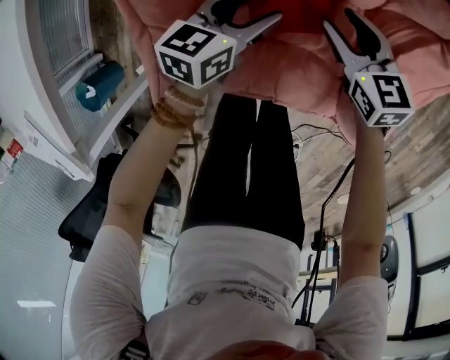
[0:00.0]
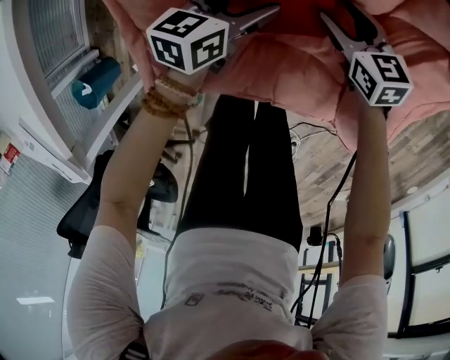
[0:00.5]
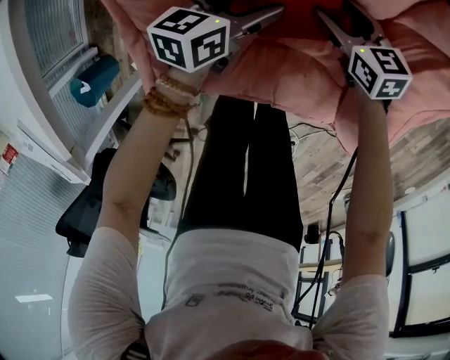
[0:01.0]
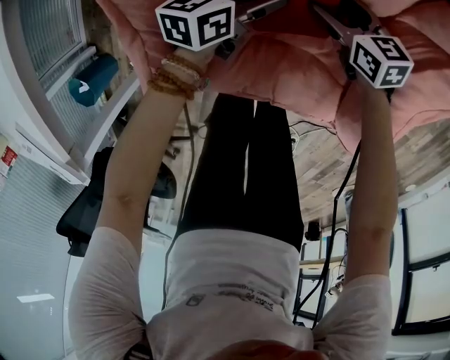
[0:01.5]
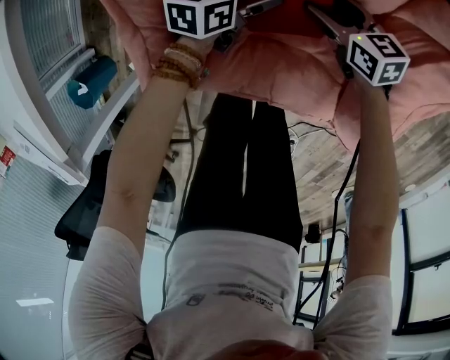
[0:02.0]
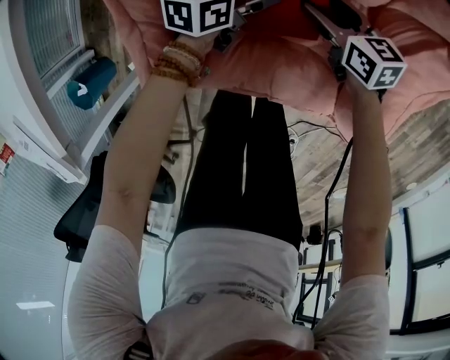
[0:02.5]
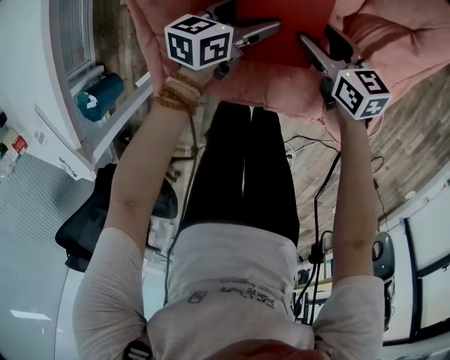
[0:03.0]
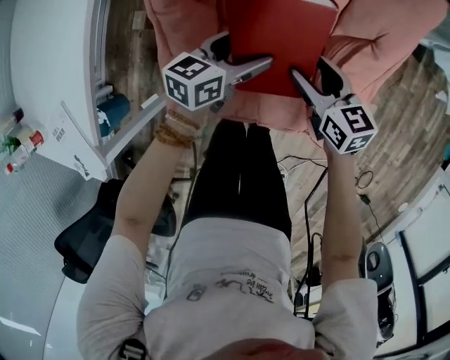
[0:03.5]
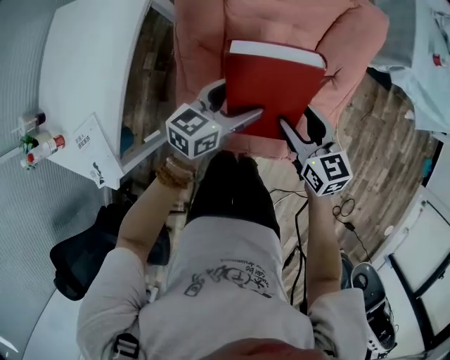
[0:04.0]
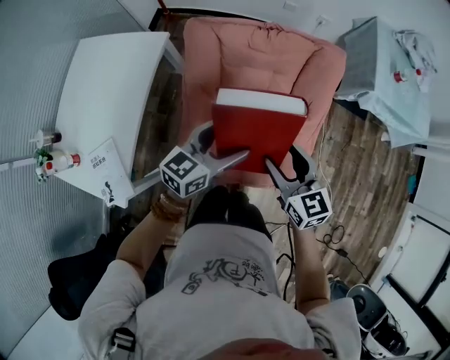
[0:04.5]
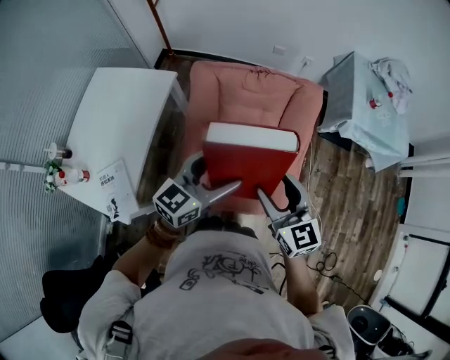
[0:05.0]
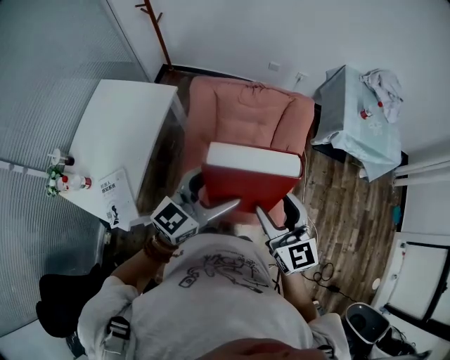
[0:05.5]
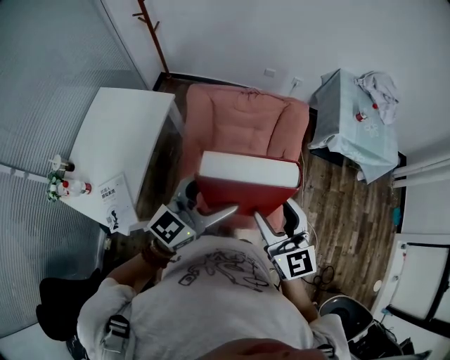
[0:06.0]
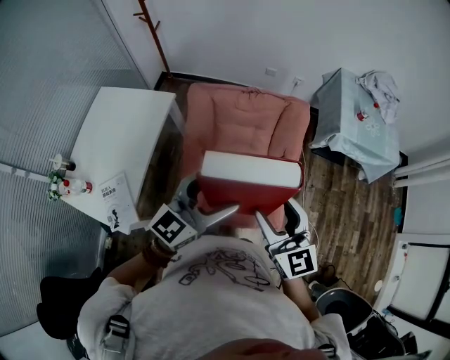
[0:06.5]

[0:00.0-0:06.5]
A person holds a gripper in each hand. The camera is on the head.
0.0 to 2.0 s: The grippers both shift downward by about 10 cm. The left gripper opens up.
2.0 to 4.5 s: The two grippers go about 60 cm upward. The left gripper rotates some 30 degrees. Meanwhile the right gripper rotates about 30 degrees.
4.5 to 6.5 s: The two grippers go about 25 cm upward and backward. The left gripper swivels some 20 degrees, while the right gripper swivels approximately 20 degrees.

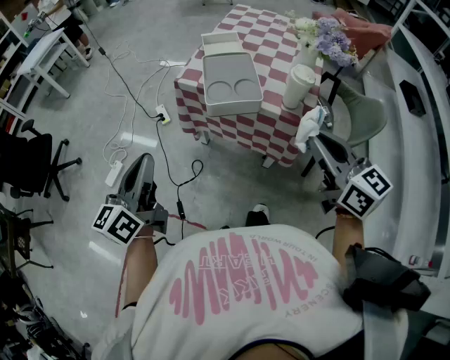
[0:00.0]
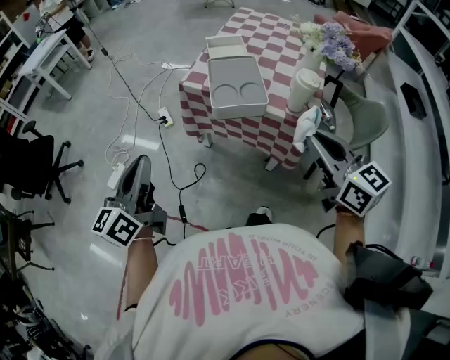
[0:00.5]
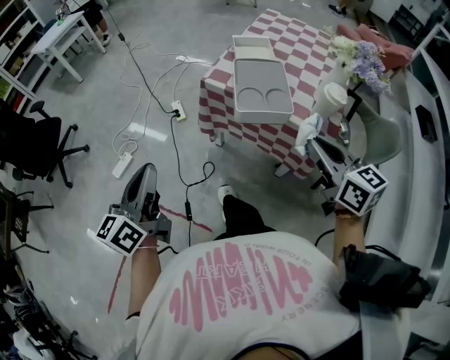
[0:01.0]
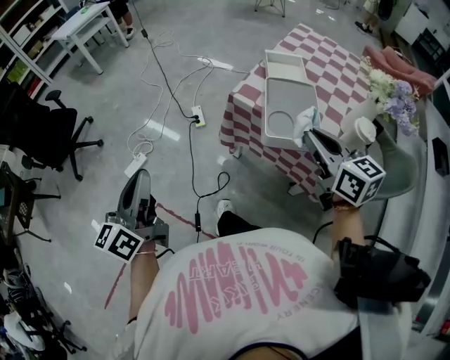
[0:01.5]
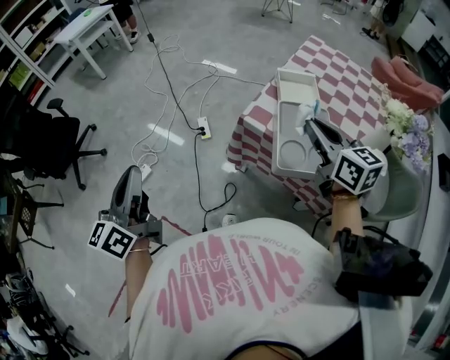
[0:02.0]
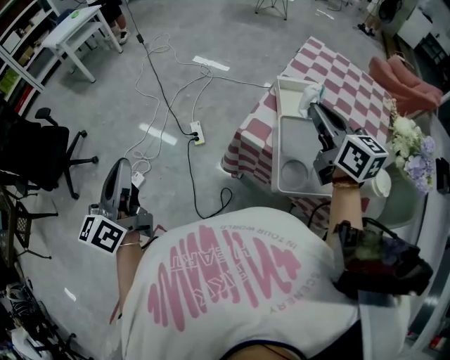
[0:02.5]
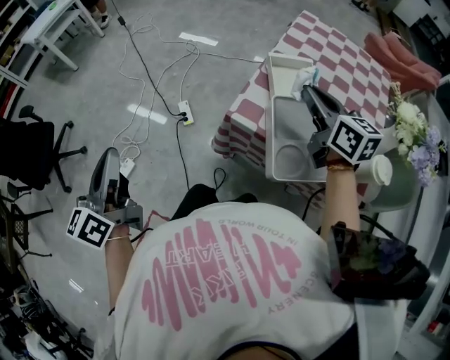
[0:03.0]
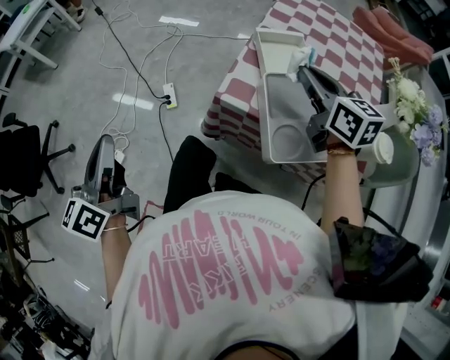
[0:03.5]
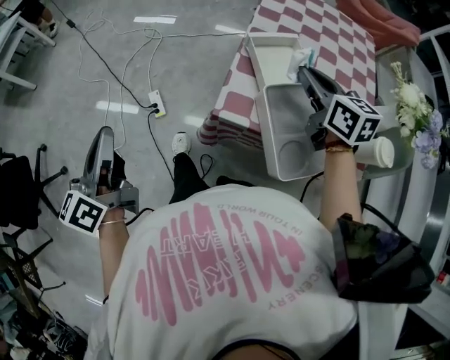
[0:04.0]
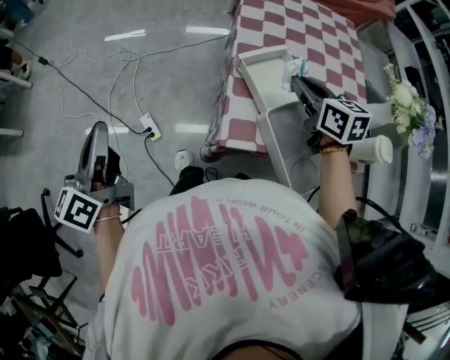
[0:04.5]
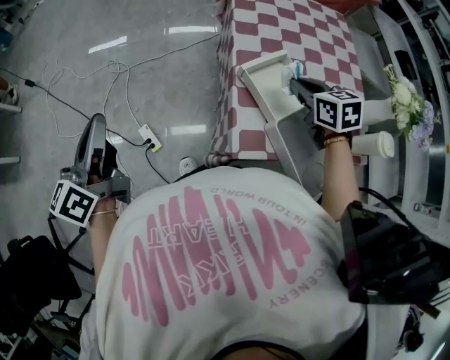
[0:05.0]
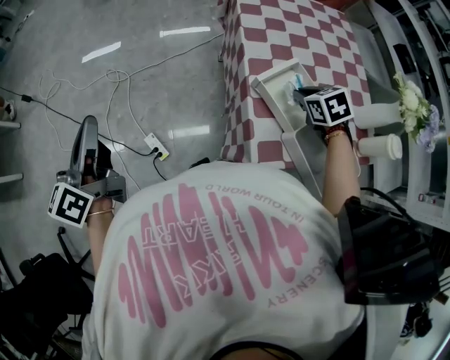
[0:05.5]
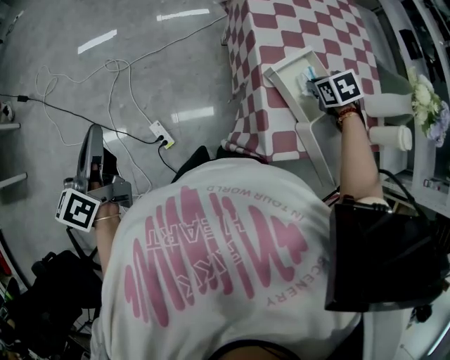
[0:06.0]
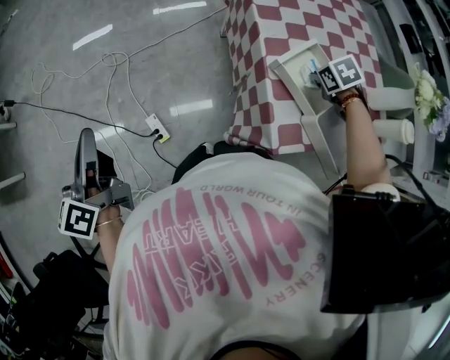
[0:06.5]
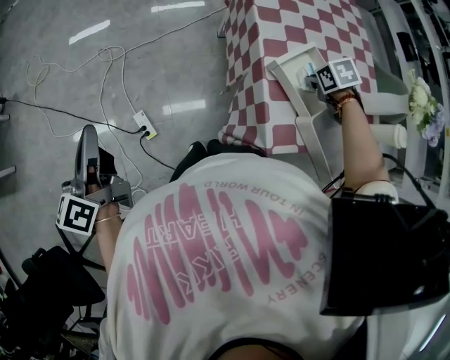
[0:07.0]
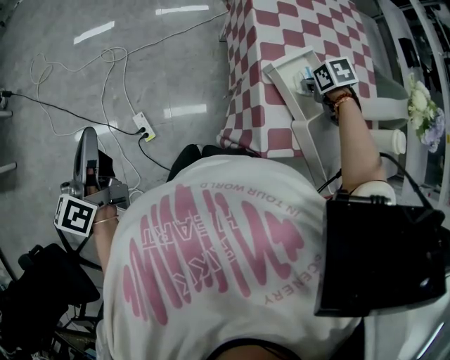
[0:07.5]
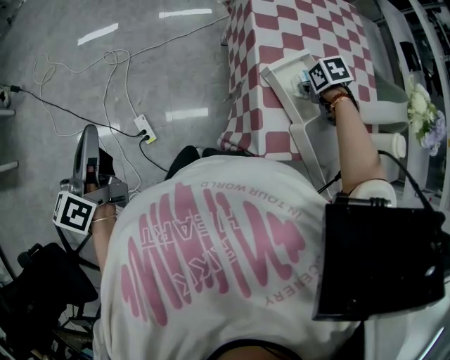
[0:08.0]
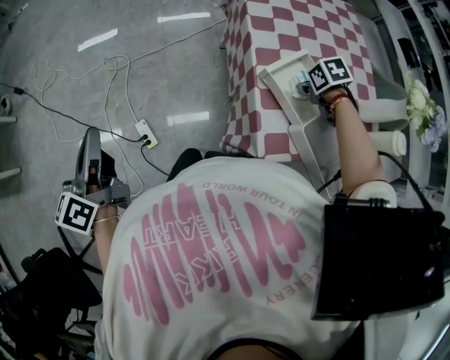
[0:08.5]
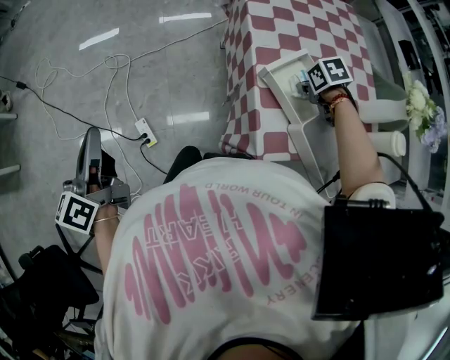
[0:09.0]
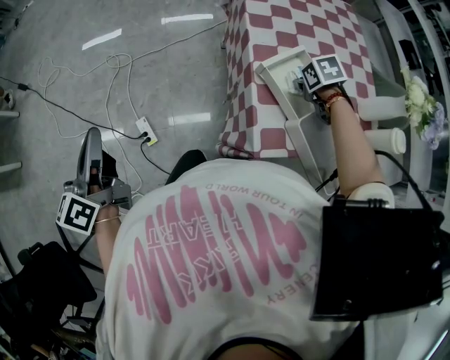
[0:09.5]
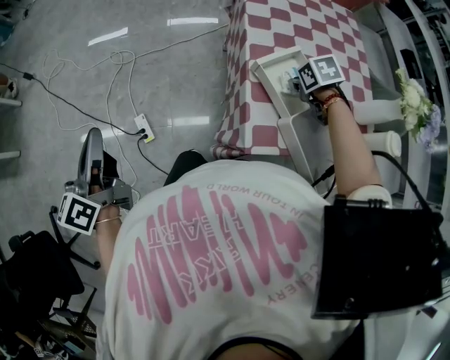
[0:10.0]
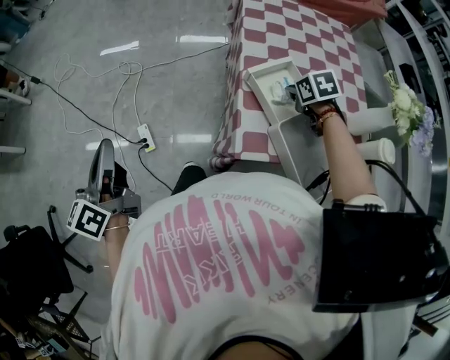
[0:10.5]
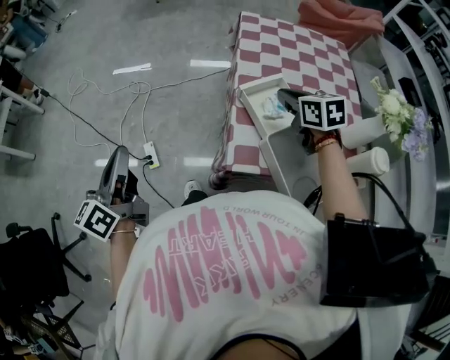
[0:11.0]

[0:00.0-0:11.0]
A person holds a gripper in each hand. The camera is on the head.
0.0 to 2.0 s: The left gripper shifts some 25 cm to the left and forward; the right gripper shifts about 35 cm forward and to the left.
2.0 to 3.5 s: The grippers both shift forward by about 15 cm.
3.5 to 5.5 s: The left gripper moves approximately 50 cm, and swivels some 30 degrees. Meanwhile the right gripper shifts by approximately 25 cm, and angles its fingers downward, by about 40 degrees.
5.5 to 7.5 s: Both grippers move downward, approximately 5 cm. The right gripper rotates approximately 20 degrees.
7.5 to 9.0 s: The grippers move only a little.
9.0 to 11.0 s: The left gripper shifts by about 20 cm. The right gripper shifts about 15 cm upward, and tips its fingers upward by roughly 40 degrees.

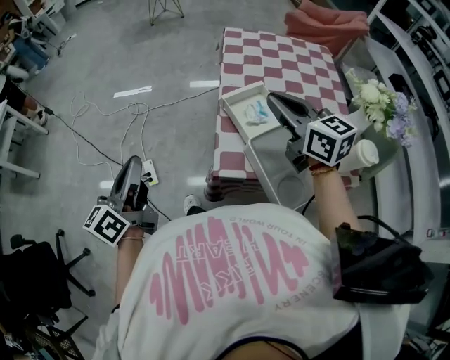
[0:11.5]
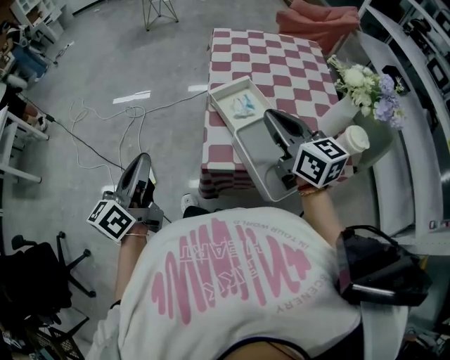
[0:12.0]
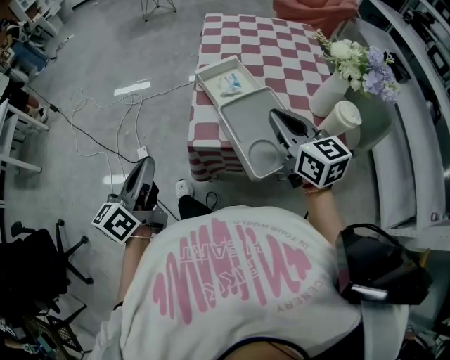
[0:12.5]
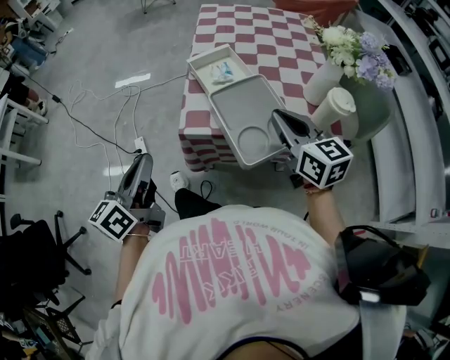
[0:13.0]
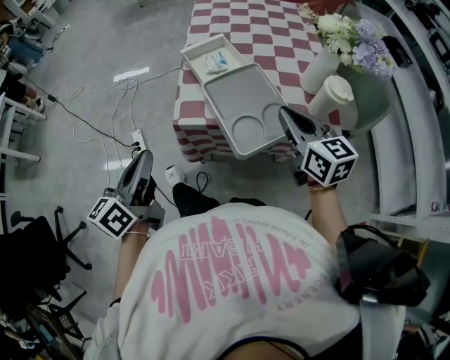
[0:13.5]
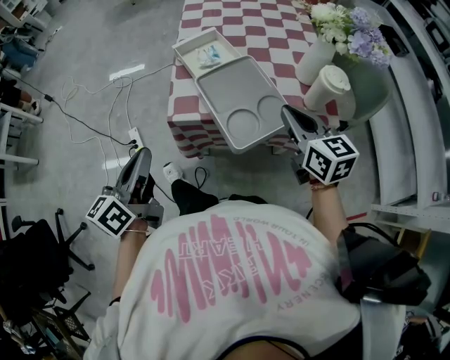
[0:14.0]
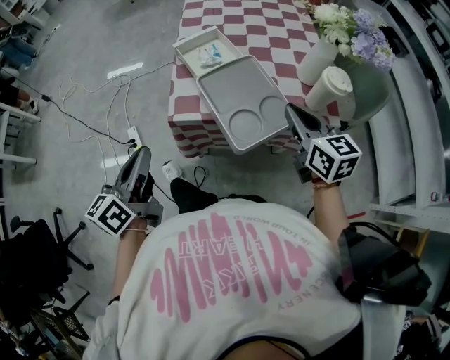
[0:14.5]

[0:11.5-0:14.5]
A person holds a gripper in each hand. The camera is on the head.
11.5 to 13.0 s: The right gripper moves backward, to the right and downward, roughly 20 cm, while the left gripper goes approximately 20 cm to the right and backward.
13.0 to 14.5 s: The right gripper shifts about 5 cm to the right.

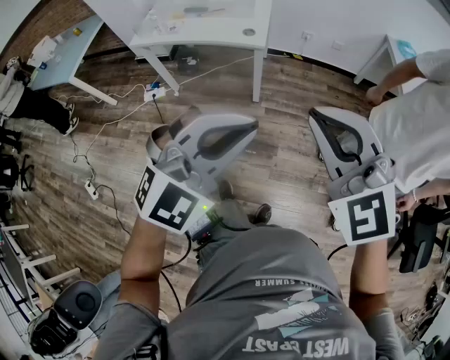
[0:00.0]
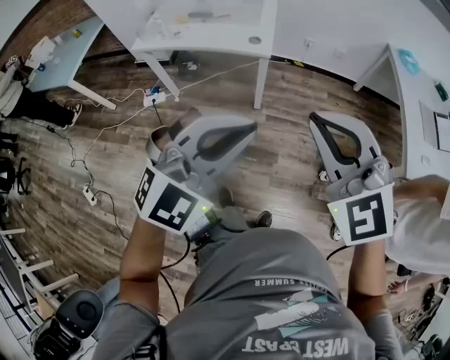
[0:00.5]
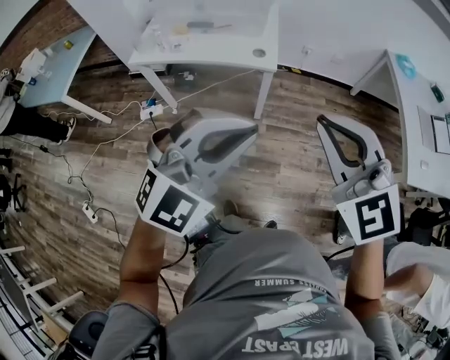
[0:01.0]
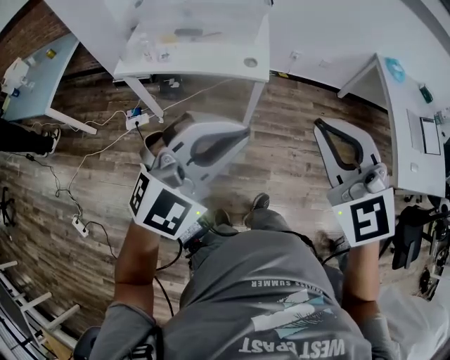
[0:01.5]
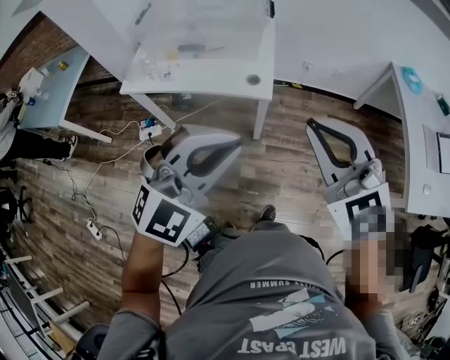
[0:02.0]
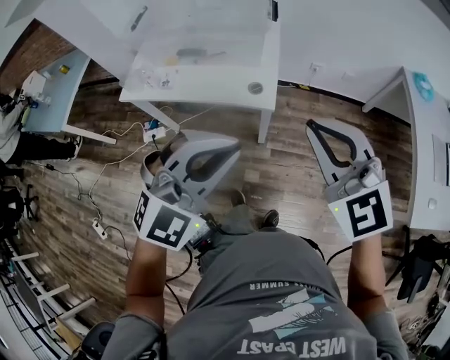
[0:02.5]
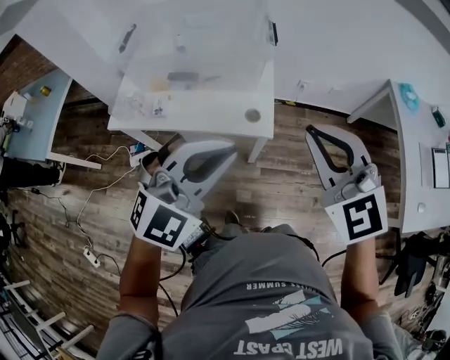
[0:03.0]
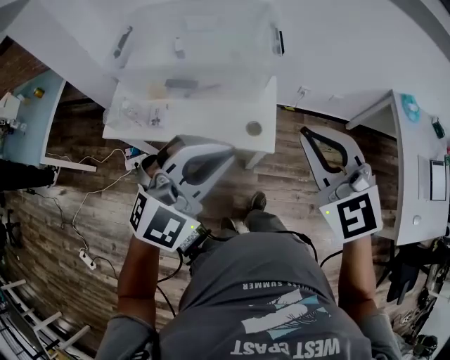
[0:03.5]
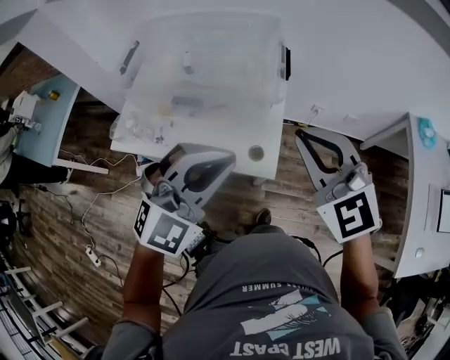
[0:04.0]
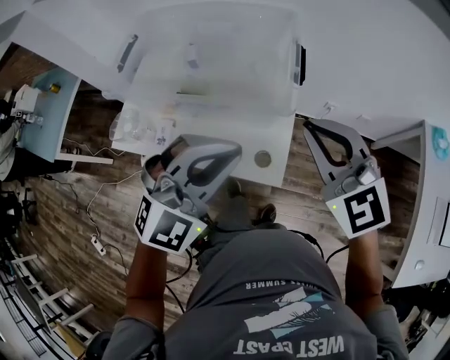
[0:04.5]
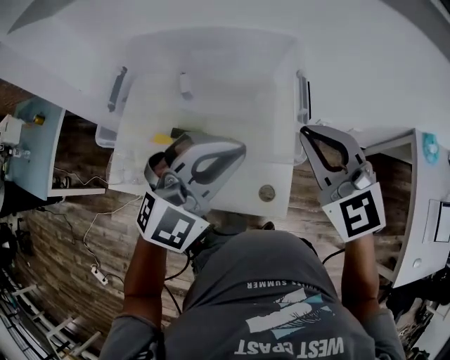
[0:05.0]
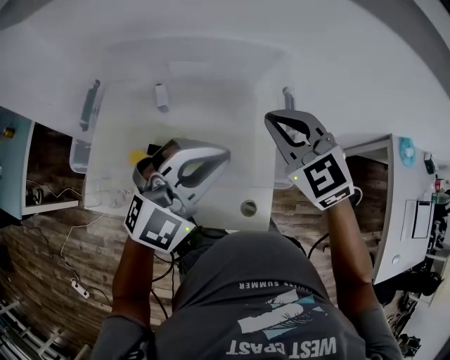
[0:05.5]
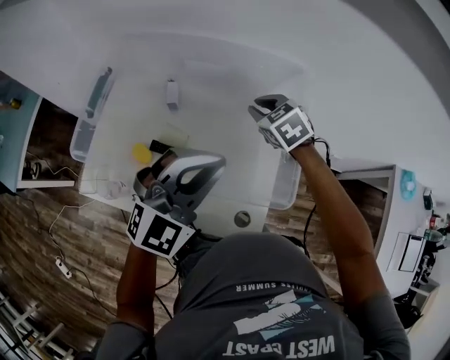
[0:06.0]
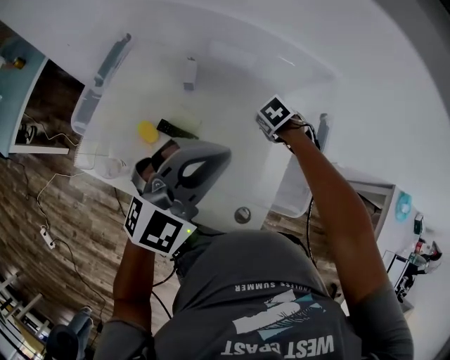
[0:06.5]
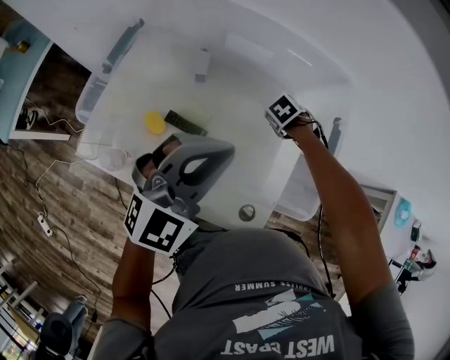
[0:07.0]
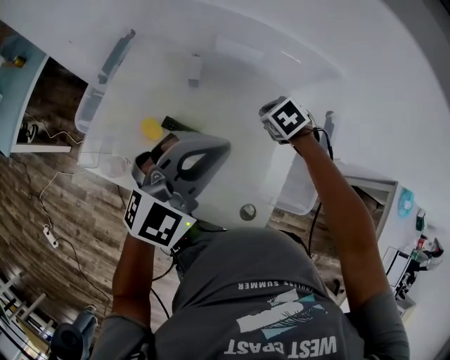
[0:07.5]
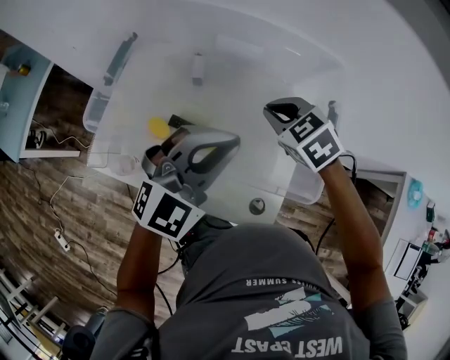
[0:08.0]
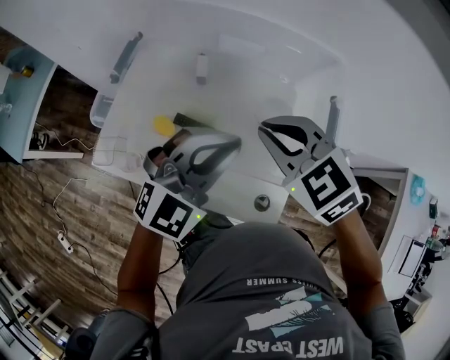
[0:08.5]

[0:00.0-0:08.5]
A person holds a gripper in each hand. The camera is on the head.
0.0 to 2.0 s: The right gripper travels forward by roughly 25 cm. Meanwhile the left gripper shifts about 25 cm forward and to the left.
2.0 to 4.0 s: Both grippers move forward, about 30 cm.
4.0 to 6.5 s: The left gripper ends up approximately 30 cm from where it was, and rotates approximately 20 degrees. Meanwhile the right gripper moves about 60 cm, angles its fingers downward, by roughly 70 degrees, and opens.
6.5 to 8.5 s: The right gripper shifts approximately 25 cm upward, and tips its fingers upward by roughly 40 degrees.
